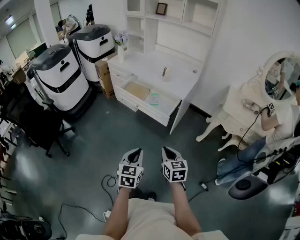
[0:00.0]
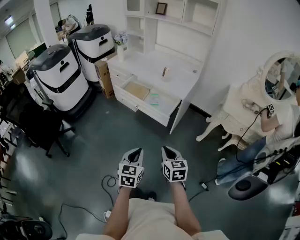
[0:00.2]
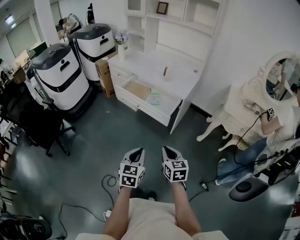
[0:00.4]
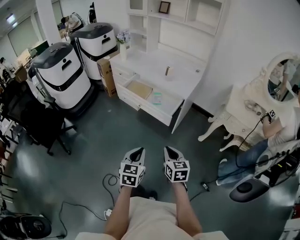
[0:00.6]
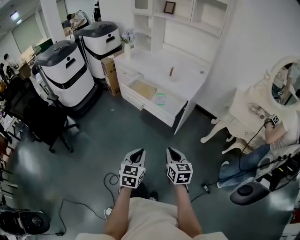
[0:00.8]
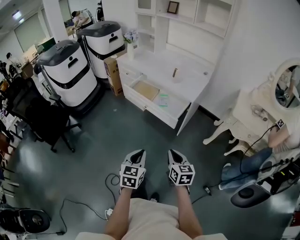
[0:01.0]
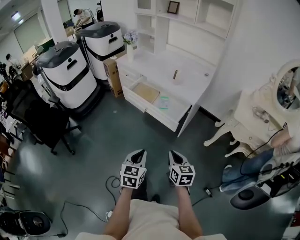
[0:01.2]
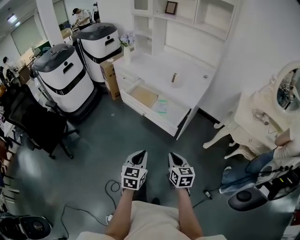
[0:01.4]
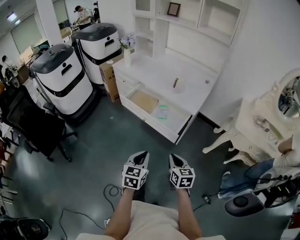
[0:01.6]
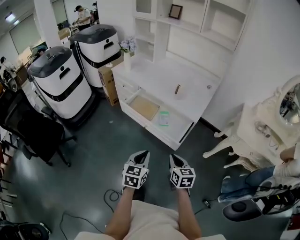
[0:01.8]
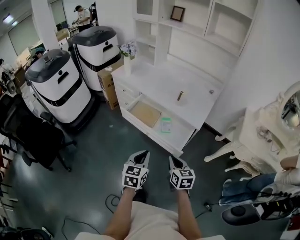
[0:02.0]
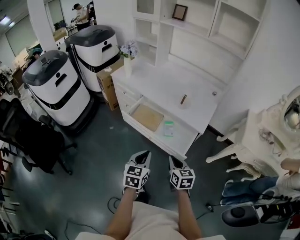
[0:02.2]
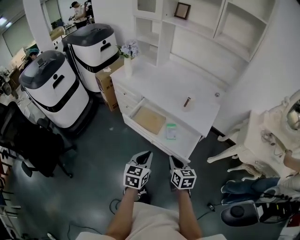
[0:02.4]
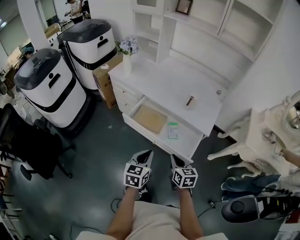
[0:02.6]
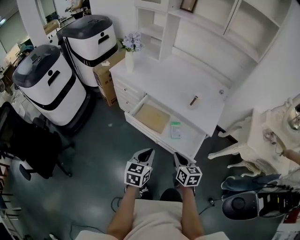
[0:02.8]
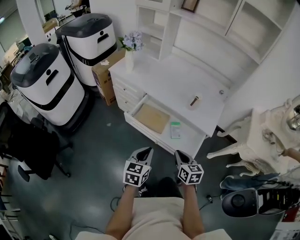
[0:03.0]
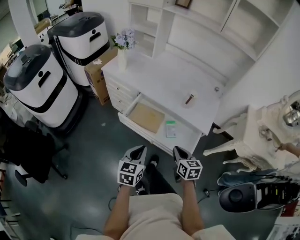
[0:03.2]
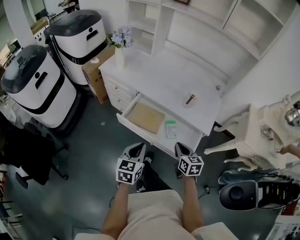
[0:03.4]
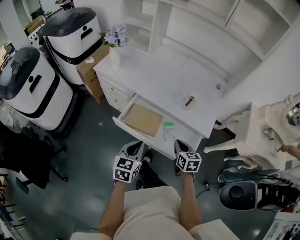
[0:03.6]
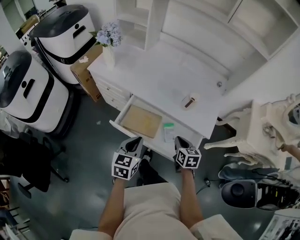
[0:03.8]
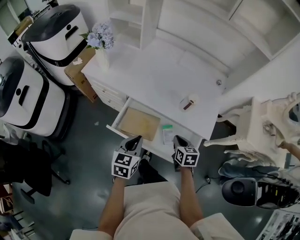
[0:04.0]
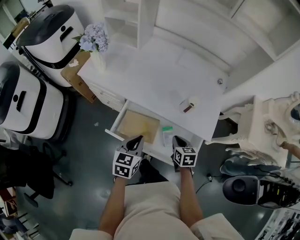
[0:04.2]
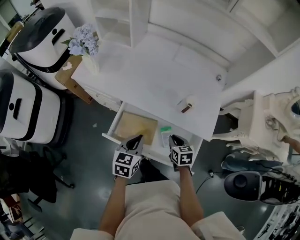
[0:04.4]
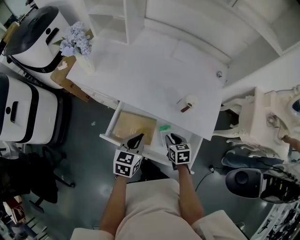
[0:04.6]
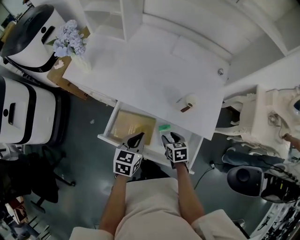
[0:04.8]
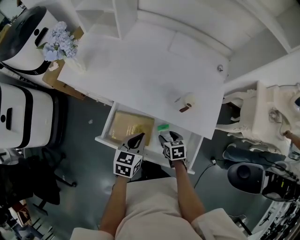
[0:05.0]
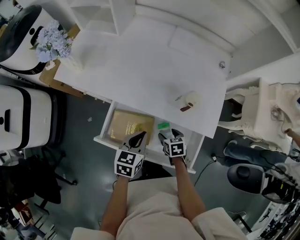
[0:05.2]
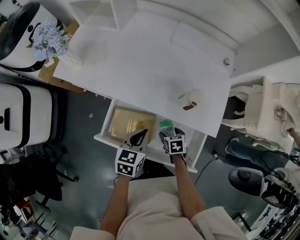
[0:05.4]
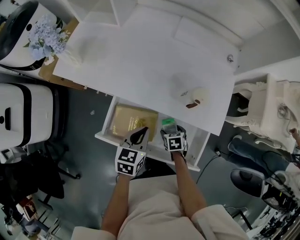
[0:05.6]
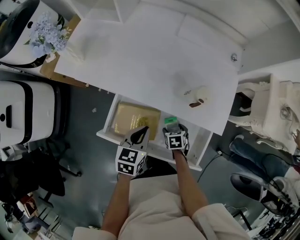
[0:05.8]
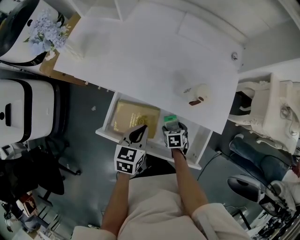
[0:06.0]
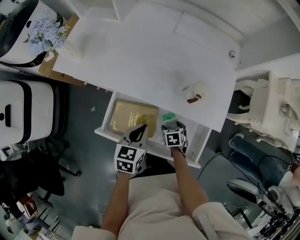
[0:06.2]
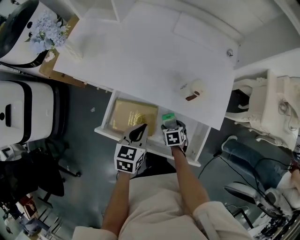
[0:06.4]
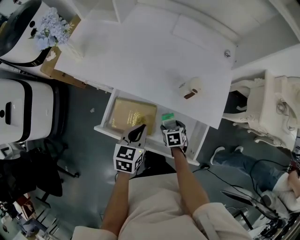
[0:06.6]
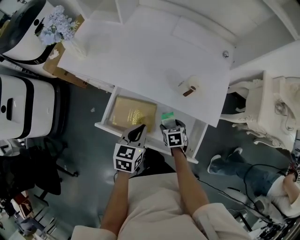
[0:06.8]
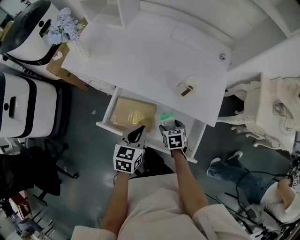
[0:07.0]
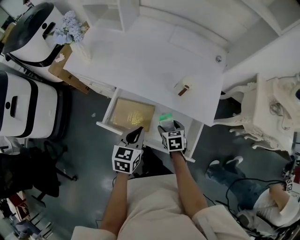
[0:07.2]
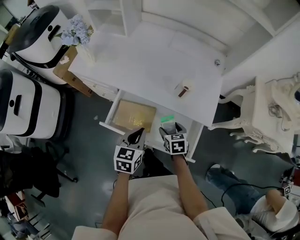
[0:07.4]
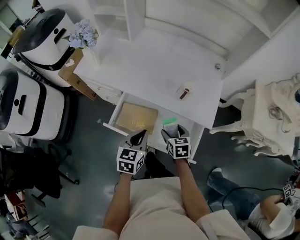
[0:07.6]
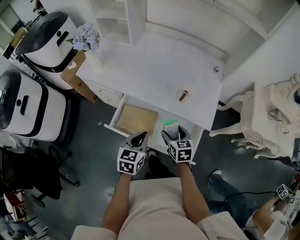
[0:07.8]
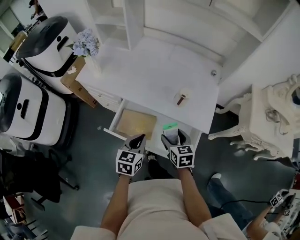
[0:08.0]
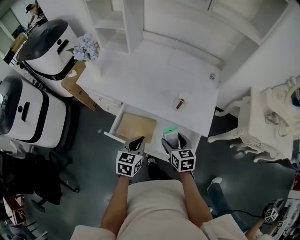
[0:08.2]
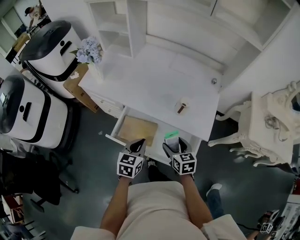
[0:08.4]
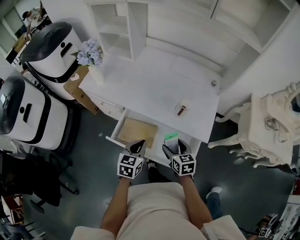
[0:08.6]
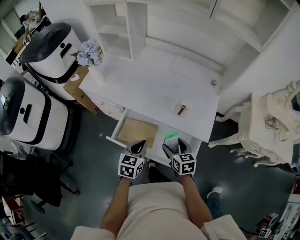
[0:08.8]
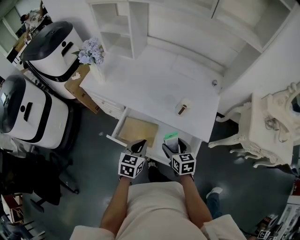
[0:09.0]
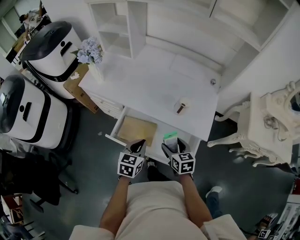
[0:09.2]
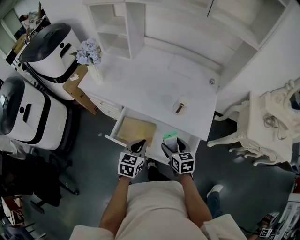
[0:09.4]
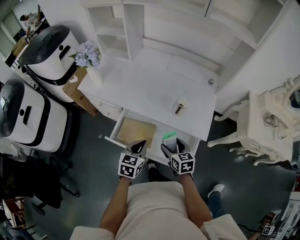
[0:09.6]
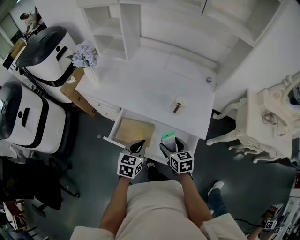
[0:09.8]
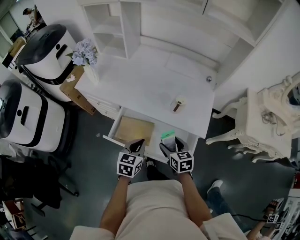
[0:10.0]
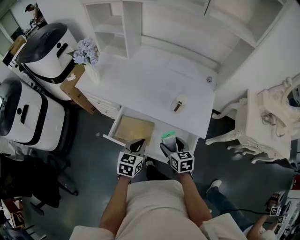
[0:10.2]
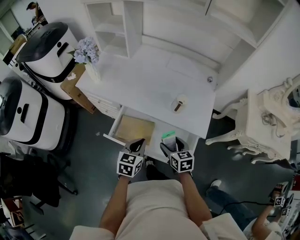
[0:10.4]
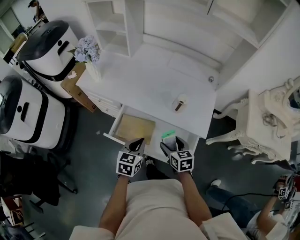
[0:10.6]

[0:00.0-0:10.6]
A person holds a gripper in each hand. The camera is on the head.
0:00.0 to 0:01.6: Both grippers move forward, approximately 15 cm.
0:01.6 to 0:03.0: The two grippers go some 30 cm forward and to the left.
0:03.0 to 0:04.6: The left gripper shifts roughly 25 cm forward, while the right gripper shifts about 25 cm forward and downward, and rotates approximately 20 degrees.
0:04.6 to 0:06.0: The right gripper is displaced downward by some 15 cm, and opens up, while the left gripper heads downward, covering roughly 5 cm.
0:06.0 to 0:07.6: The left gripper is displaced backward and upward by some 10 cm. Meanwhile the right gripper travels upward by some 20 cm, and rotates some 20 degrees.
0:07.6 to 0:09.0: The right gripper shifts roughly 5 cm upward.
0:09.0 to 0:10.6: Both grippers stay about where they are.

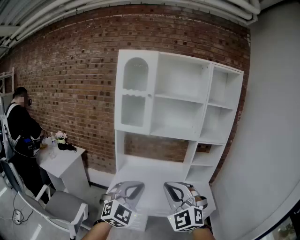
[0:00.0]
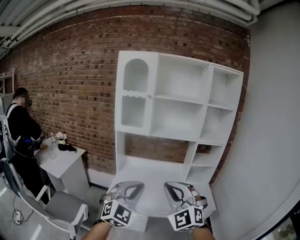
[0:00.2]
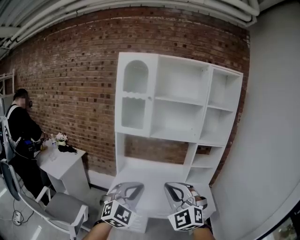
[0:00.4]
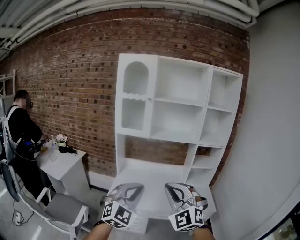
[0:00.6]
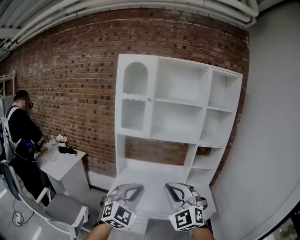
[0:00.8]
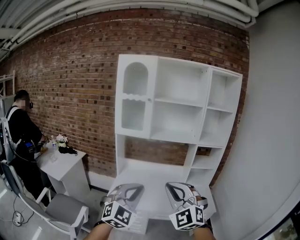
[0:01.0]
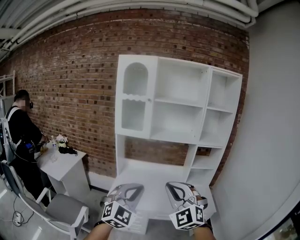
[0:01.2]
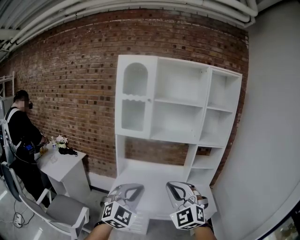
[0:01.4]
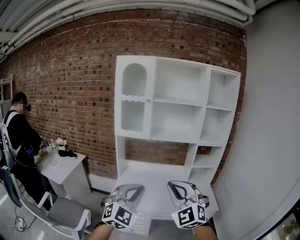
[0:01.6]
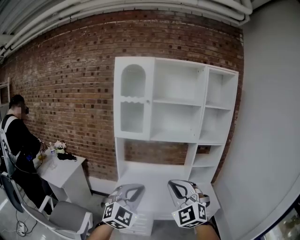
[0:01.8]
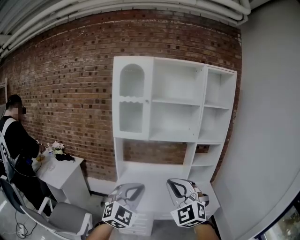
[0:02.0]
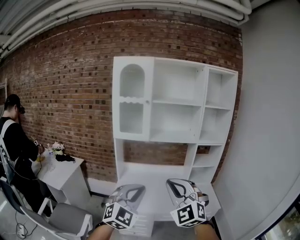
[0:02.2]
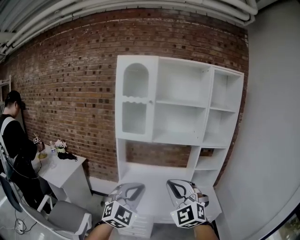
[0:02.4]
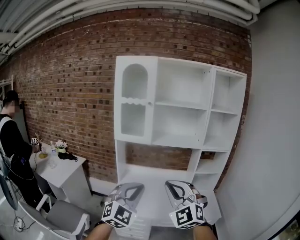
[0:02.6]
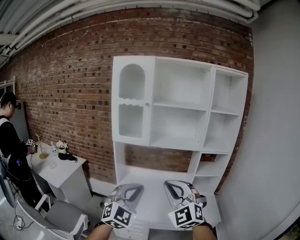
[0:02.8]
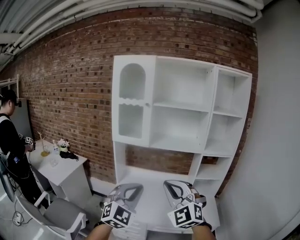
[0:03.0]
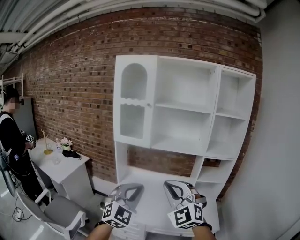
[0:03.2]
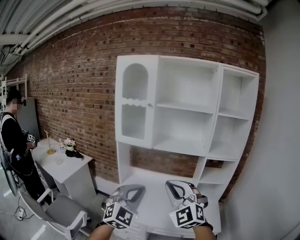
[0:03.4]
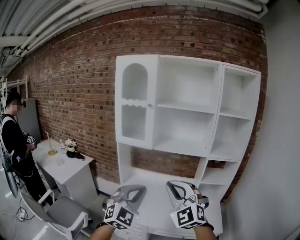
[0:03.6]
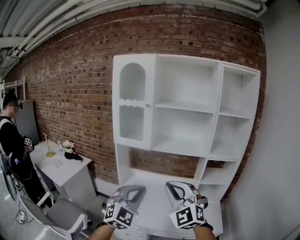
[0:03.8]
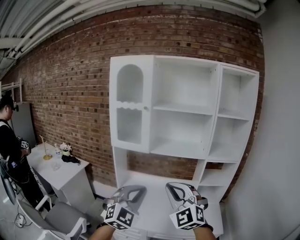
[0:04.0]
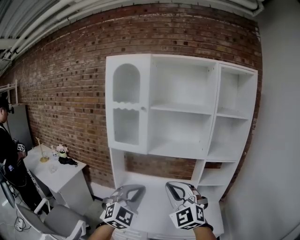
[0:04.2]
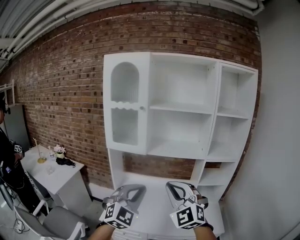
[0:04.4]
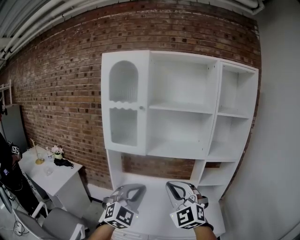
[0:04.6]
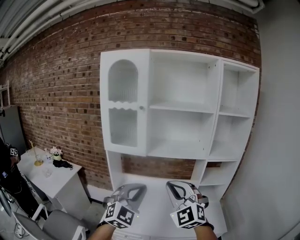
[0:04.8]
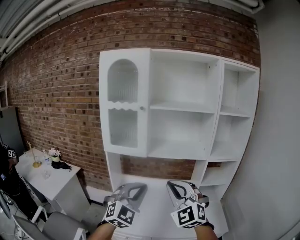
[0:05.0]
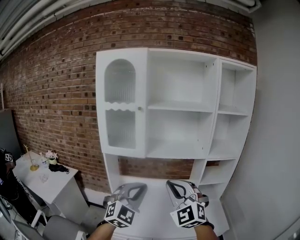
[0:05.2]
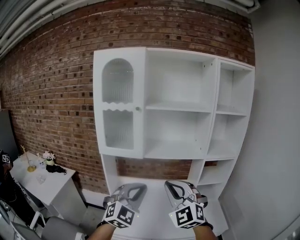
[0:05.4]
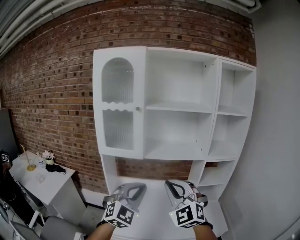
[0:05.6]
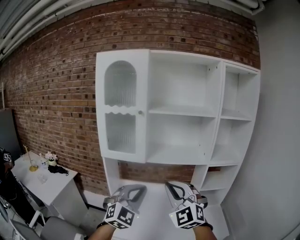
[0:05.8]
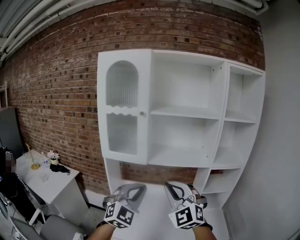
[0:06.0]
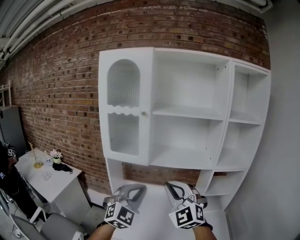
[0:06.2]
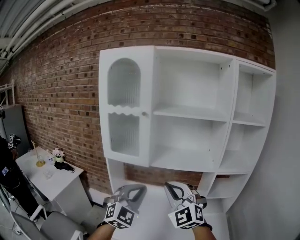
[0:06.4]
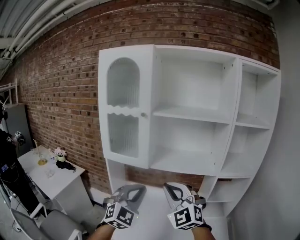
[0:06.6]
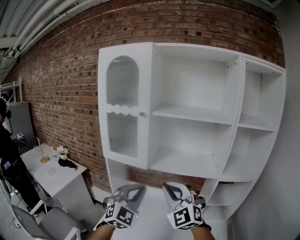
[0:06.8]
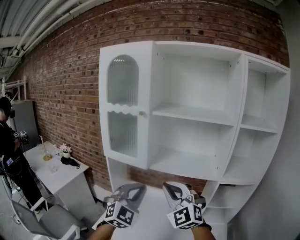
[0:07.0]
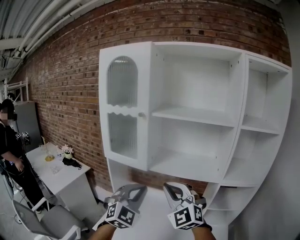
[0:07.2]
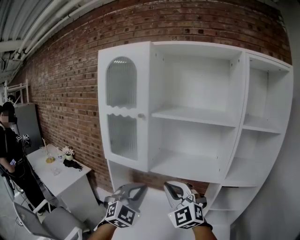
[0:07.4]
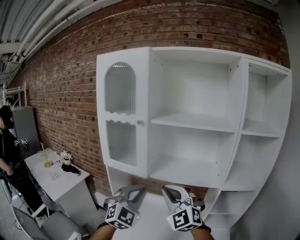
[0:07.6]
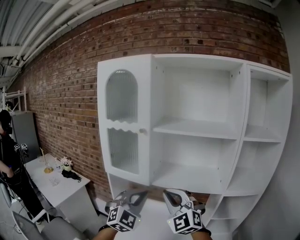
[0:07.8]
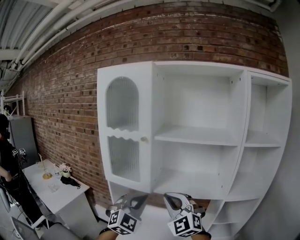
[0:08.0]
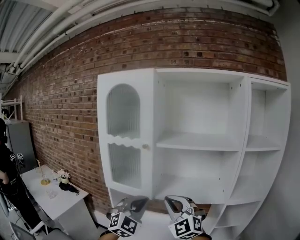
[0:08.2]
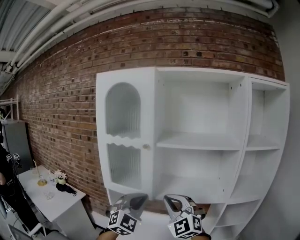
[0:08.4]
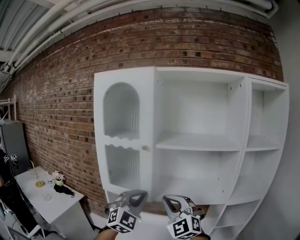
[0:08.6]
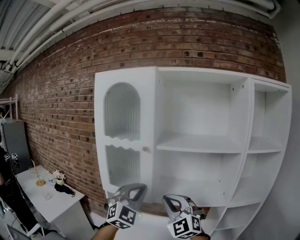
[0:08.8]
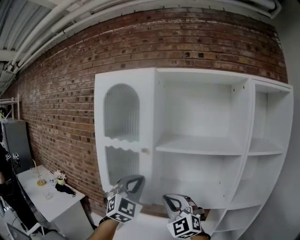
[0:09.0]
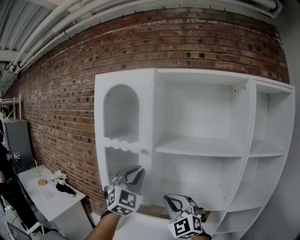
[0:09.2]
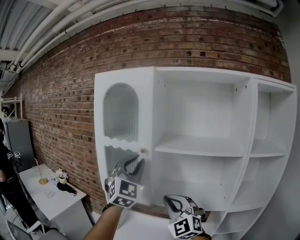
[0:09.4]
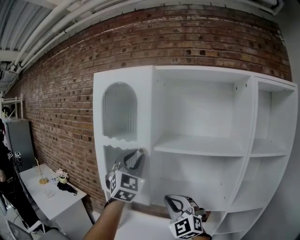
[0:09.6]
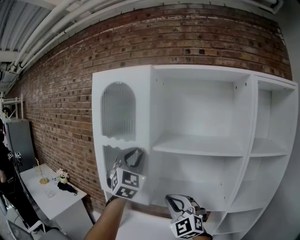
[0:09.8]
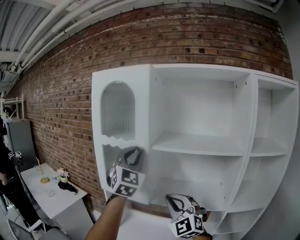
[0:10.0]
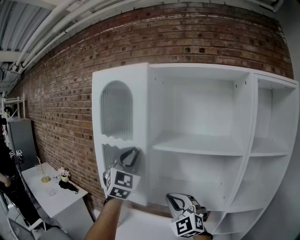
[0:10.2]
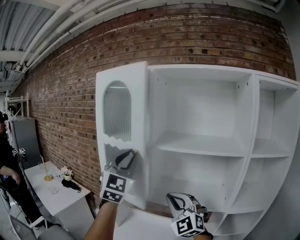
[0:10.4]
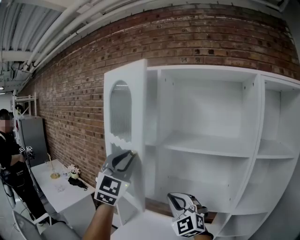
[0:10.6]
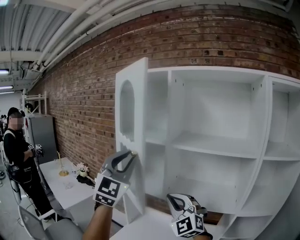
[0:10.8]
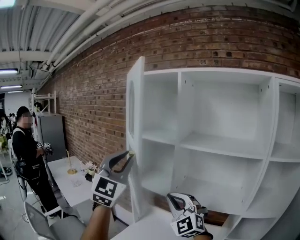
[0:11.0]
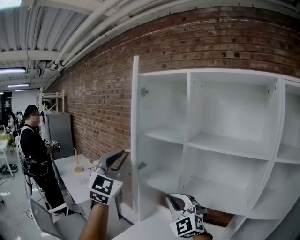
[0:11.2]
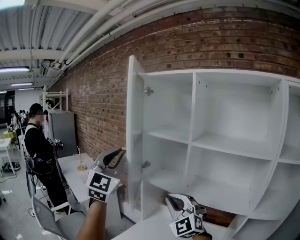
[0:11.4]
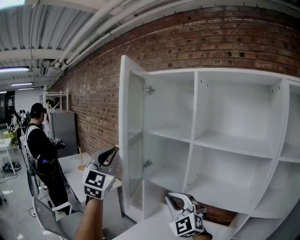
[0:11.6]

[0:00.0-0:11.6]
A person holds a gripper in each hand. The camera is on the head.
0:00.0 to 0:01.4: Neither gripper changes place.
0:01.4 to 0:02.8: The grippers both shift forward by about 10 cm.
0:02.8 to 0:04.4: The grippers both shift forward by about 15 cm.
0:04.4 to 0:05.8: The two grippers go approximately 10 cm forward.
0:05.8 to 0:07.2: The grippers both shift forward and to the right by some 15 cm.
0:07.2 to 0:08.8: The right gripper is displaced forward and to the left by roughly 10 cm; the left gripper is displaced forward, upward and to the left by about 15 cm.
0:08.8 to 0:10.2: The right gripper moves approximately 5 cm; the left gripper moves upward and forward, approximately 15 cm, and rotates about 20 degrees.
0:10.2 to 0:11.6: The right gripper moves to the left, about 15 cm. The left gripper heads to the left and backward, covering about 25 cm.

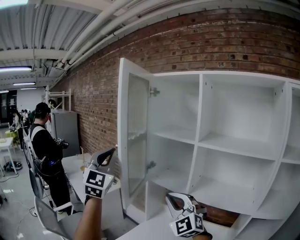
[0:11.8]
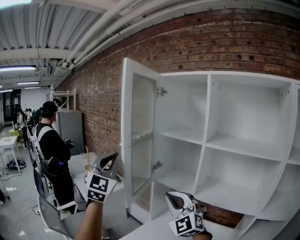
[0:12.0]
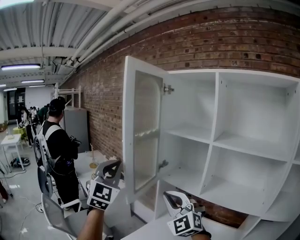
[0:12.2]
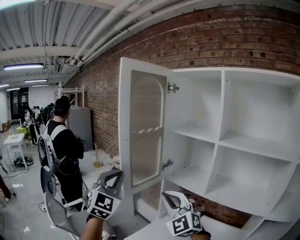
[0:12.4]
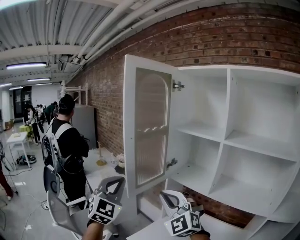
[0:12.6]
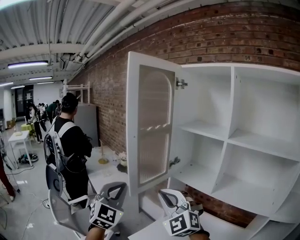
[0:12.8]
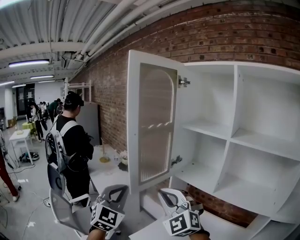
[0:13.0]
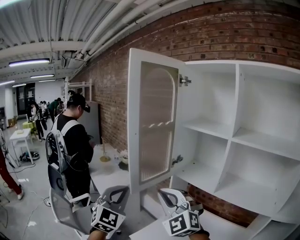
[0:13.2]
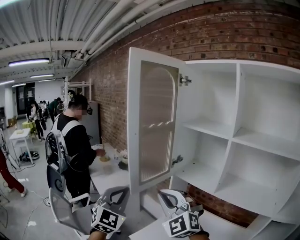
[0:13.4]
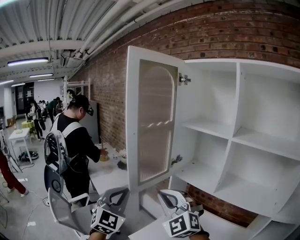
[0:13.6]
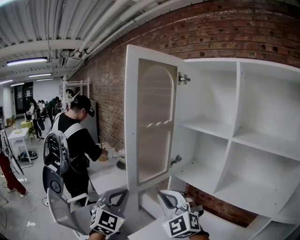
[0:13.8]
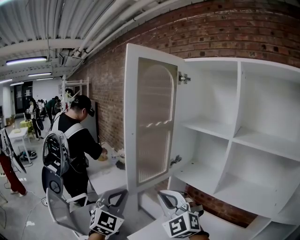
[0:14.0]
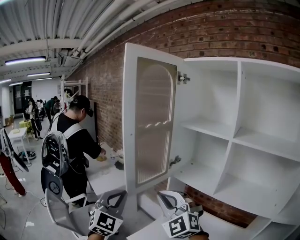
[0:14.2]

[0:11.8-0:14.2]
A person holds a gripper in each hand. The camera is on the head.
0:11.8 to 0:13.0: The right gripper shifts some 15 cm to the left; the left gripper goes roughly 15 cm downward.
0:13.0 to 0:14.2: The grippers move only a little.
